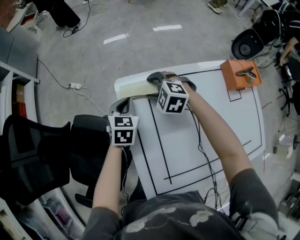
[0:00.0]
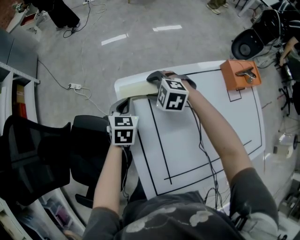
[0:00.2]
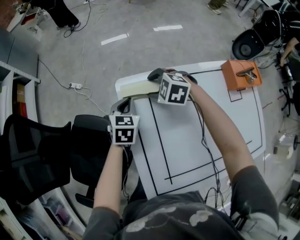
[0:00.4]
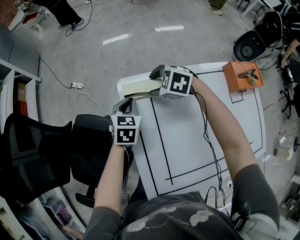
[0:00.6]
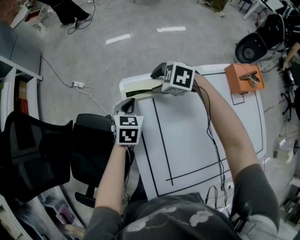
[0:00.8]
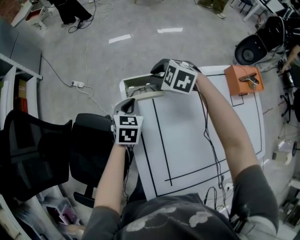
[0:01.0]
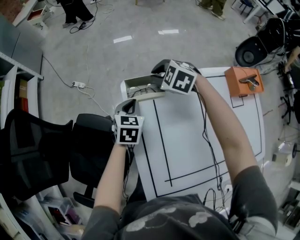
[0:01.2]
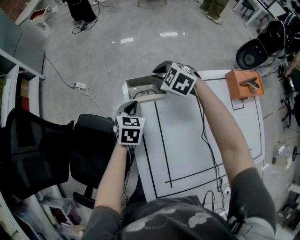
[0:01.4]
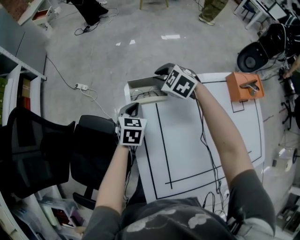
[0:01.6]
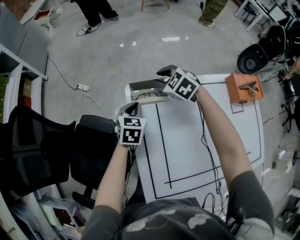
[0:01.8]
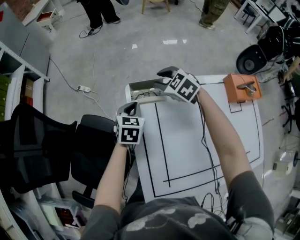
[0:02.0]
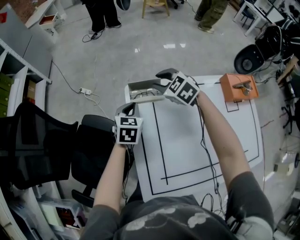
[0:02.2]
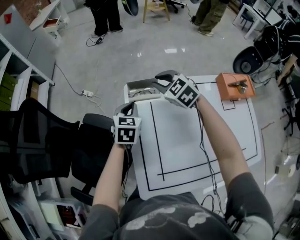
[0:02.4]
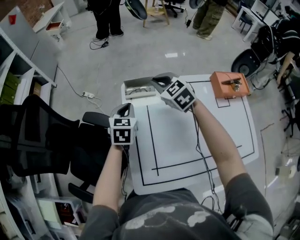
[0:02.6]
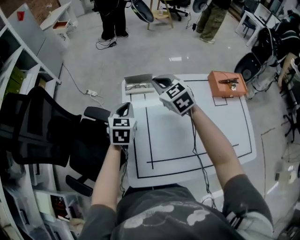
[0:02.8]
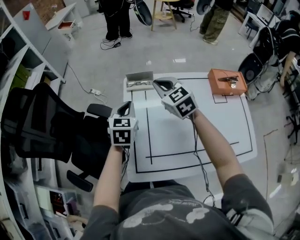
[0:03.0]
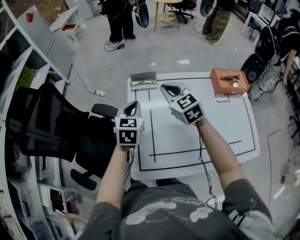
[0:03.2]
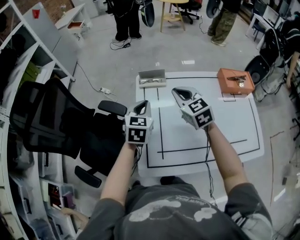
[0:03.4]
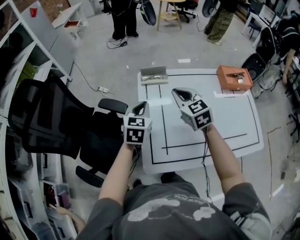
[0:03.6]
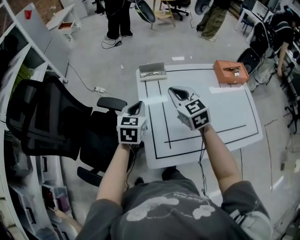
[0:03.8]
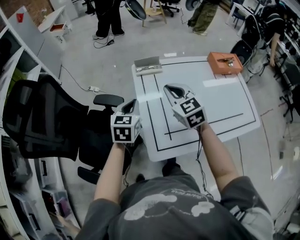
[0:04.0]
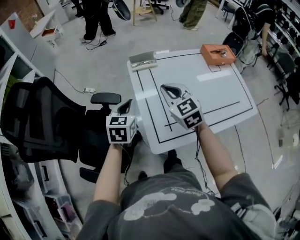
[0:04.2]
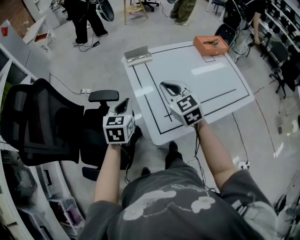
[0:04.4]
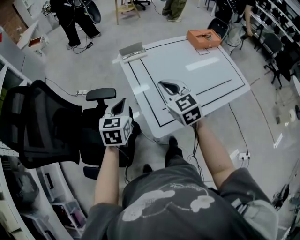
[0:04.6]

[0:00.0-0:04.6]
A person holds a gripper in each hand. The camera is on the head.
0:00.0 to 0:01.6: The right gripper shifts roughly 5 cm forward, and closes its fingers.
0:01.6 to 0:03.0: The left gripper goes approximately 20 cm upward and backward; the right gripper travels backward and upward by some 25 cm, and swivels some 30 degrees.
0:03.0 to 0:04.6: Both grippers travel together backward and to the left, approximately 25 cm. The right gripper swivels about 20 degrees.

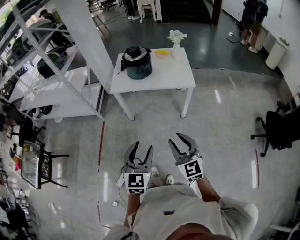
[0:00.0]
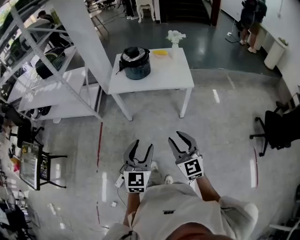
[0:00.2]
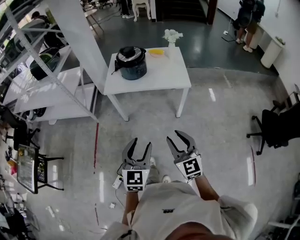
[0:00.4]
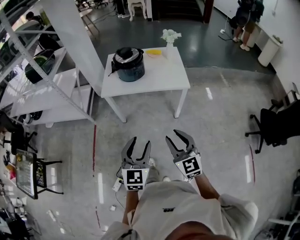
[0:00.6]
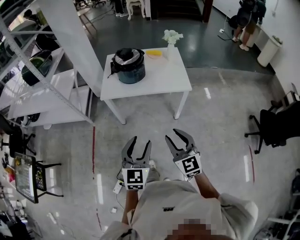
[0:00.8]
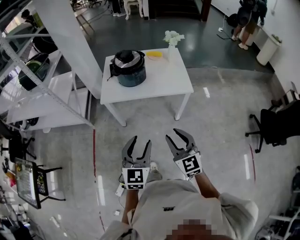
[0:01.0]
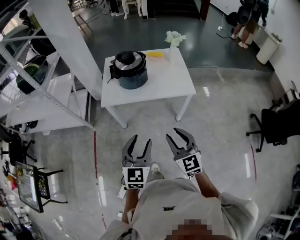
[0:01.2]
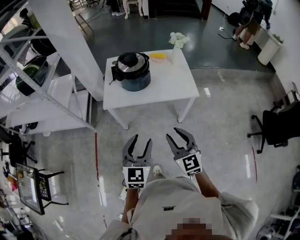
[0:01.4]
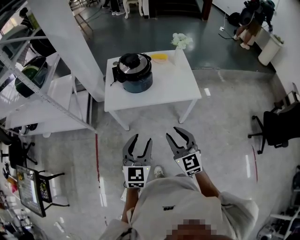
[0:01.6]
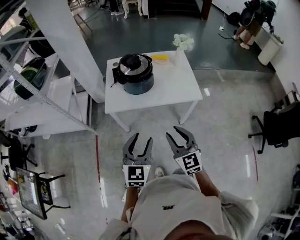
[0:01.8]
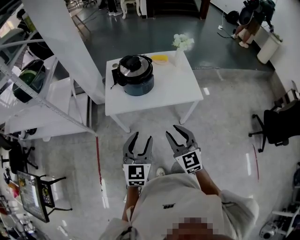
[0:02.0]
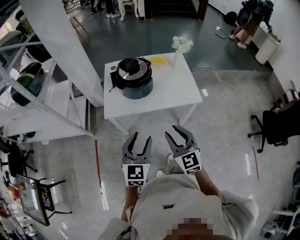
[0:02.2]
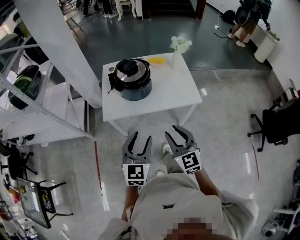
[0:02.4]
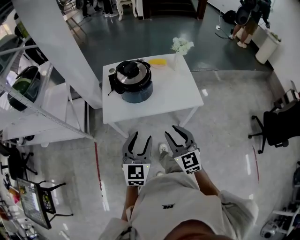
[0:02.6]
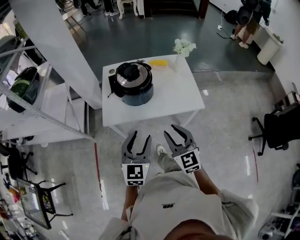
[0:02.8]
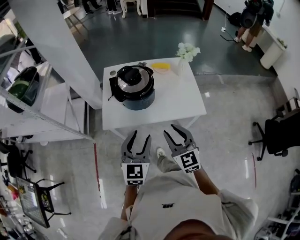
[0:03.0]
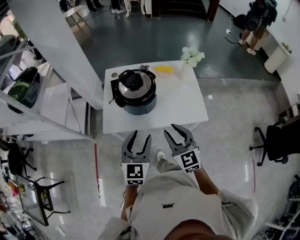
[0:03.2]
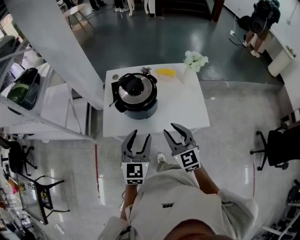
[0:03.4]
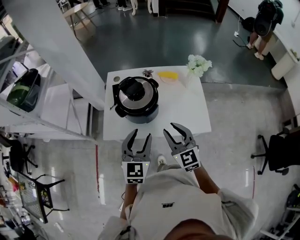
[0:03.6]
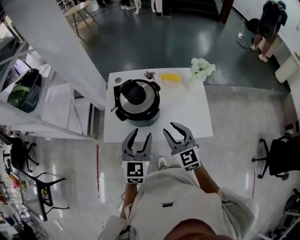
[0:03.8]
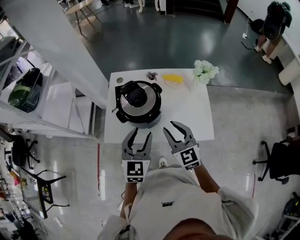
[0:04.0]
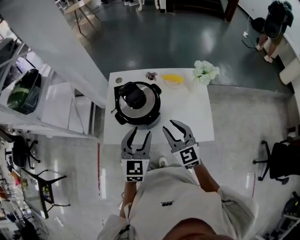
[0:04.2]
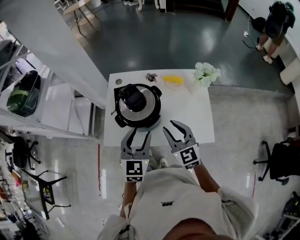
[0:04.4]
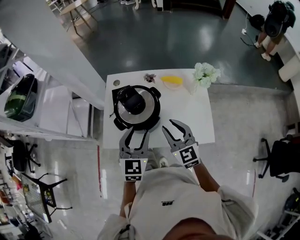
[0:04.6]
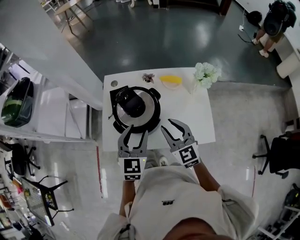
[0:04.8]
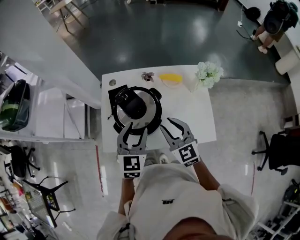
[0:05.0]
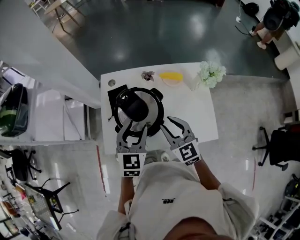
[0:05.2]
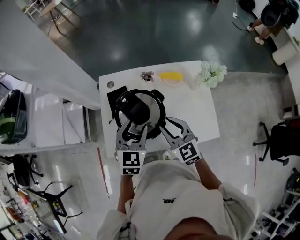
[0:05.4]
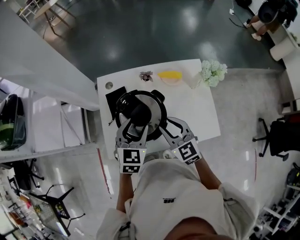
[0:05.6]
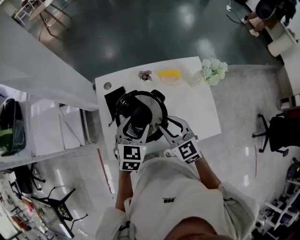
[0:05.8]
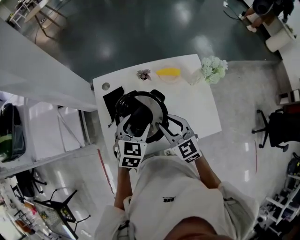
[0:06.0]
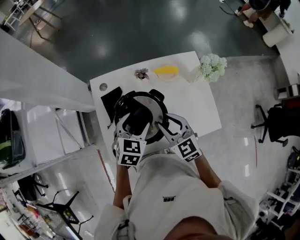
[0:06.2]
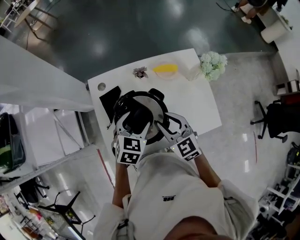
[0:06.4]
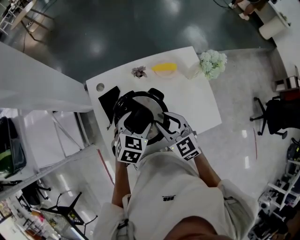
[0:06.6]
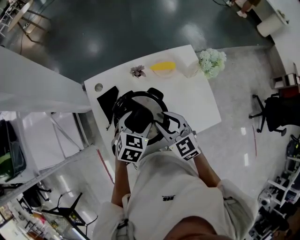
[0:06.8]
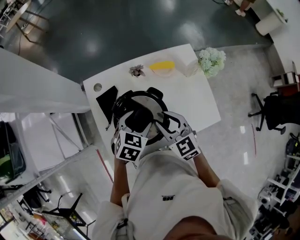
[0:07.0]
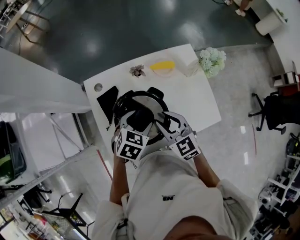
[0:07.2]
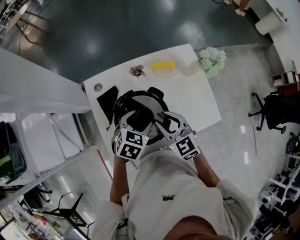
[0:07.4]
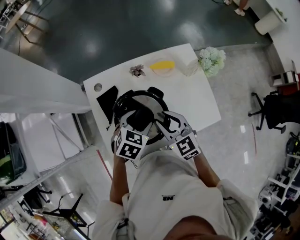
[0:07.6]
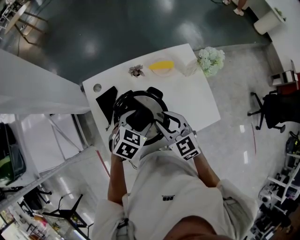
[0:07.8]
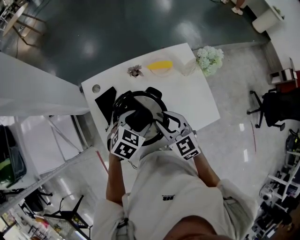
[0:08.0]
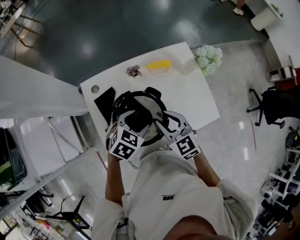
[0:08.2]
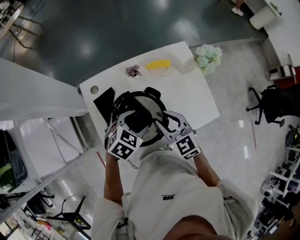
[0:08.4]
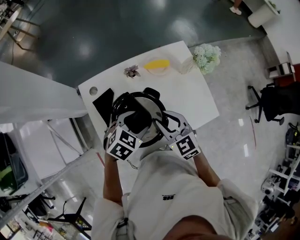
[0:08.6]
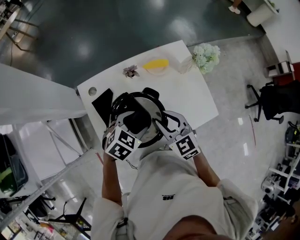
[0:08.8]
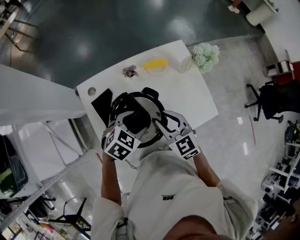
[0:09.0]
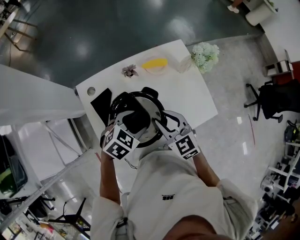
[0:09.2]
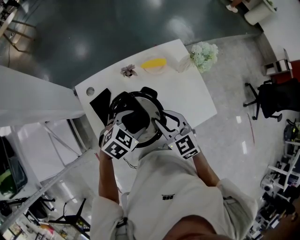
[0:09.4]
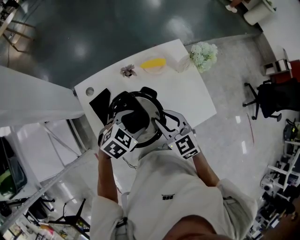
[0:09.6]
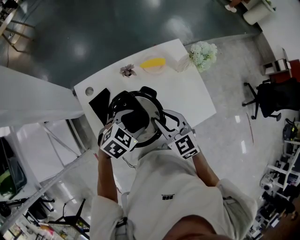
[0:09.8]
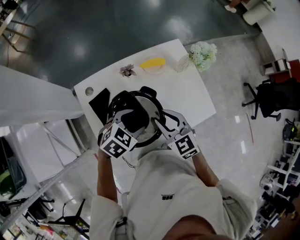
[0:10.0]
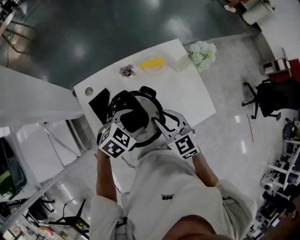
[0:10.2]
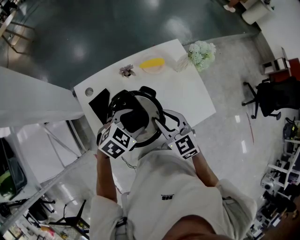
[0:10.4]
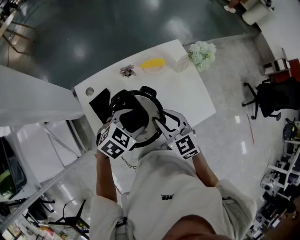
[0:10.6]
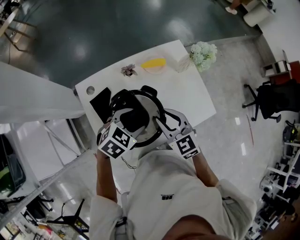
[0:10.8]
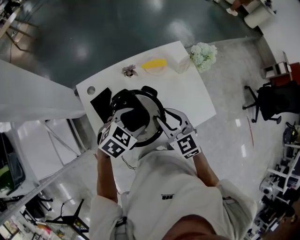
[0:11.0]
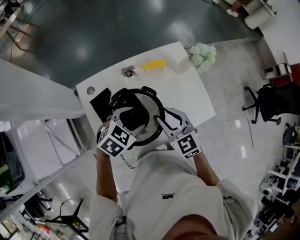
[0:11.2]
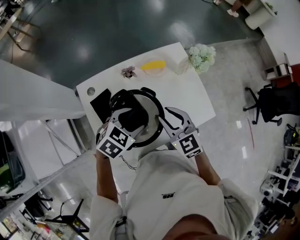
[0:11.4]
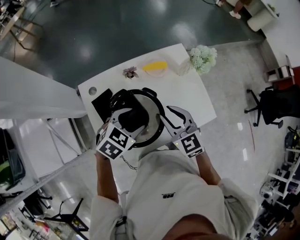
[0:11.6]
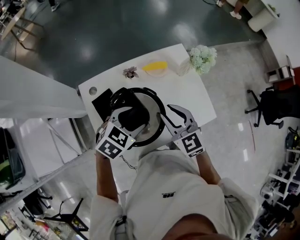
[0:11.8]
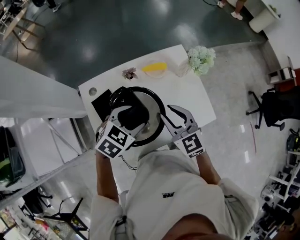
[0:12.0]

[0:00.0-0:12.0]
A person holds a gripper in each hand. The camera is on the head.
0:00.0 to 0:01.6: Both grippers travel together forward, approximately 25 cm.
0:01.6 to 0:03.0: The two grippers go approximately 20 cm forward.
0:03.0 to 0:04.4: Both grippers travel together forward, approximately 20 cm.
0:04.4 to 0:06.0: The left gripper is displaced forward and downward by approximately 20 cm, and rotates roughly 30 degrees; the right gripper goes approximately 15 cm forward, to the left and downward.
0:06.0 to 0:07.6: The left gripper swivels about 20 degrees.
0:07.6 to 0:09.0: There are only small adjustments of the grippers.
0:09.0 to 0:10.4: The grippers move only a little.
0:10.4 to 0:12.0: The right gripper shifts by about 5 cm.

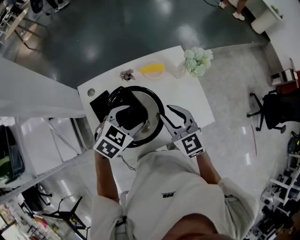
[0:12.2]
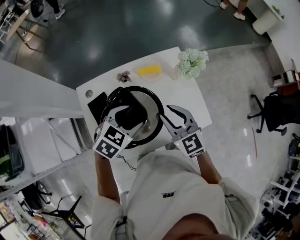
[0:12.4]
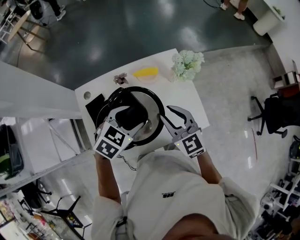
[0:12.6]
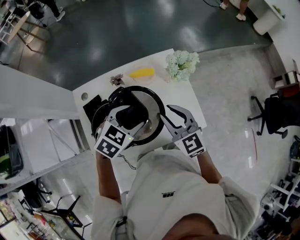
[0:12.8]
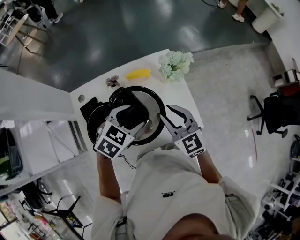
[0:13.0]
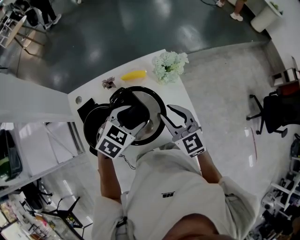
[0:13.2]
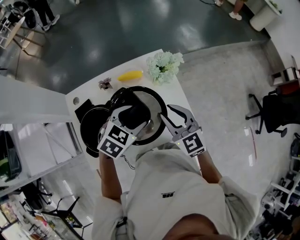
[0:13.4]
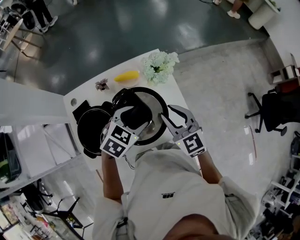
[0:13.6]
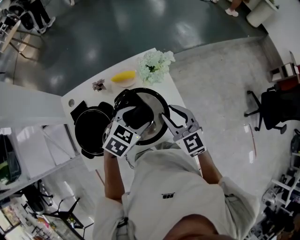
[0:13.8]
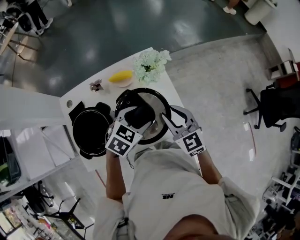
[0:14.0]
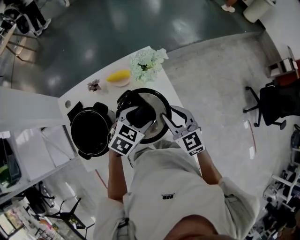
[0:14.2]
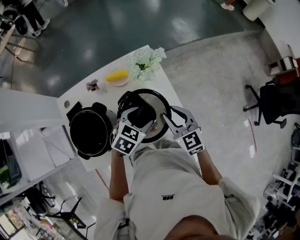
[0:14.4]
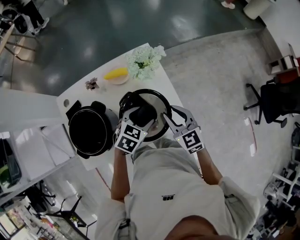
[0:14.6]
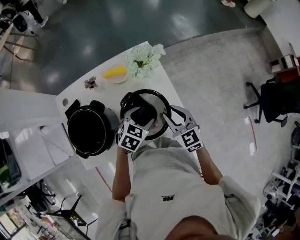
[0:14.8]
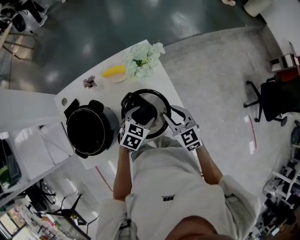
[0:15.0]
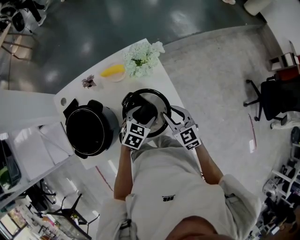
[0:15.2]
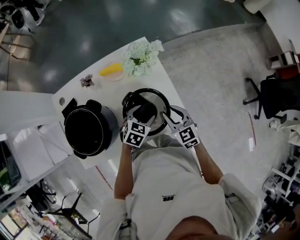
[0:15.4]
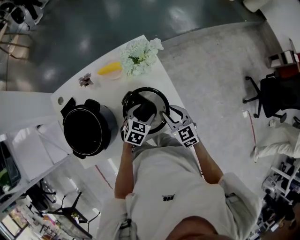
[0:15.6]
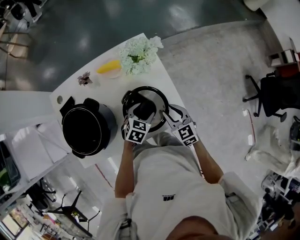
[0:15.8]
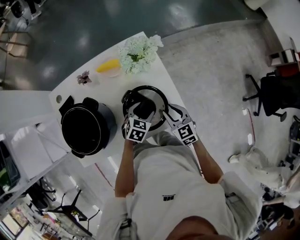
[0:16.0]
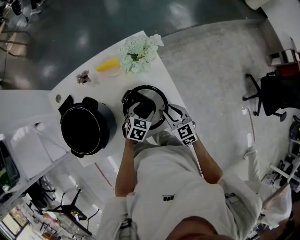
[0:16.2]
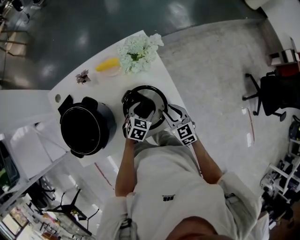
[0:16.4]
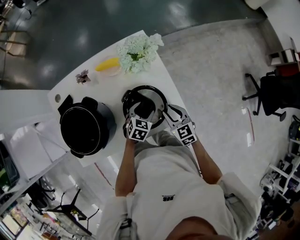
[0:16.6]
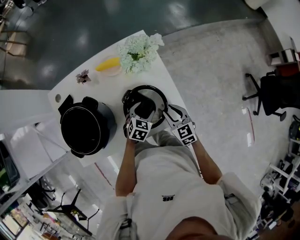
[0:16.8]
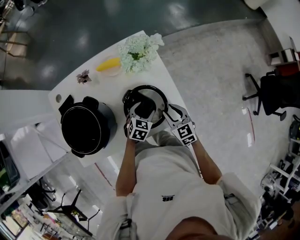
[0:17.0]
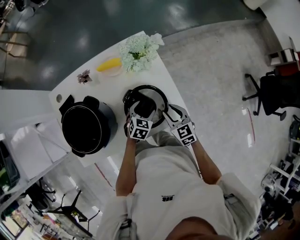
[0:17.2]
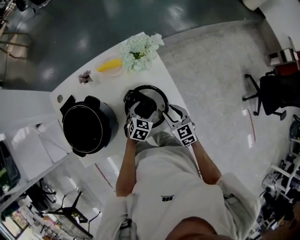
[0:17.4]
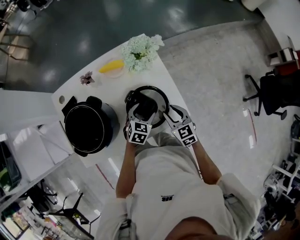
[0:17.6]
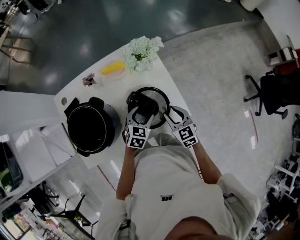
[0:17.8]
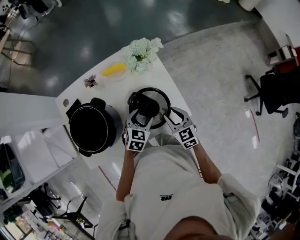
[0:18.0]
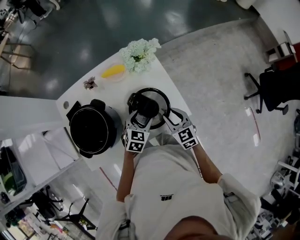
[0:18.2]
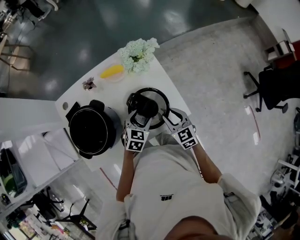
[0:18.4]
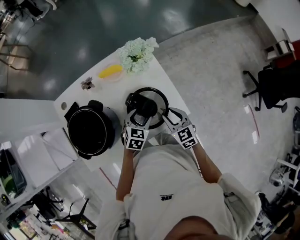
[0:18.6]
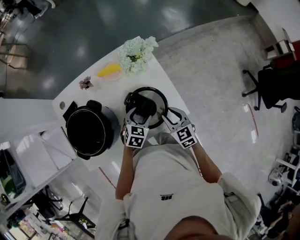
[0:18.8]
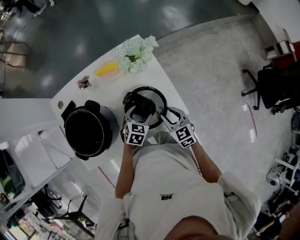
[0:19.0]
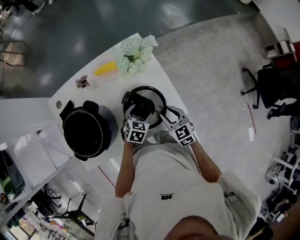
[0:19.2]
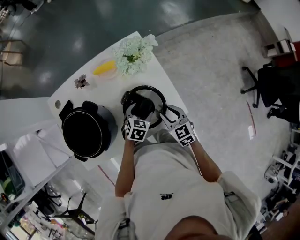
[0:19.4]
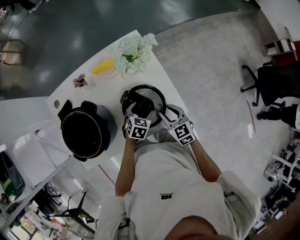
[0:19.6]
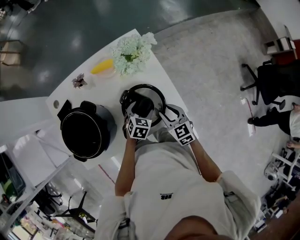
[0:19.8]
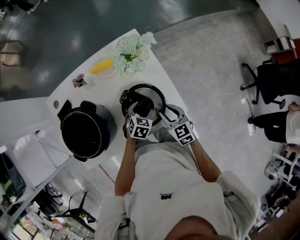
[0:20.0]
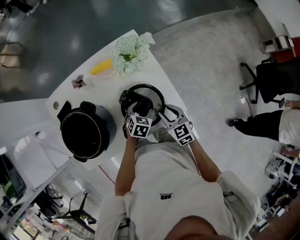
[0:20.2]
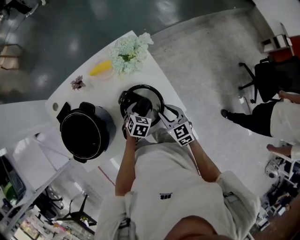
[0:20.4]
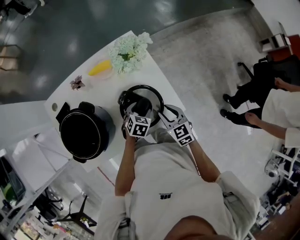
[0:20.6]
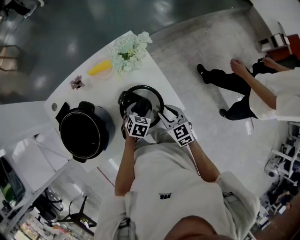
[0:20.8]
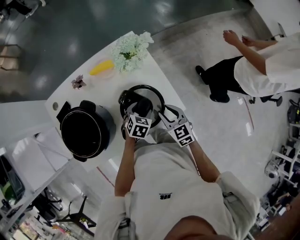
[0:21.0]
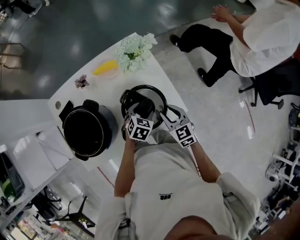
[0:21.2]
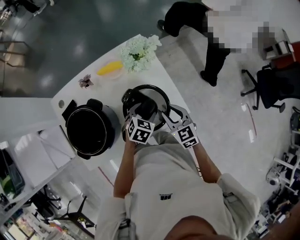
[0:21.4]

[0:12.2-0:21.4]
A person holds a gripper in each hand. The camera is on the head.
0:12.2 to 0:13.8: Both grippers move to the right, some 20 cm.
0:13.8 to 0:15.2: Both grippers travel together downward and to the right, approximately 15 cm.
0:15.2 to 0:16.8: The grippers both shift downward by some 10 cm.
0:16.8 to 0:18.4: The right gripper changes place by some 5 cm; the left gripper is displaced upward by about 5 cm.
0:18.4 to 0:19.8: The left gripper travels downward by approximately 10 cm.
0:19.8 to 0:21.4: The grippers both shift upward by roughly 5 cm.
